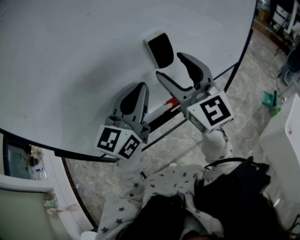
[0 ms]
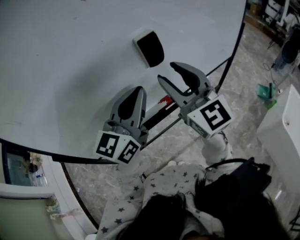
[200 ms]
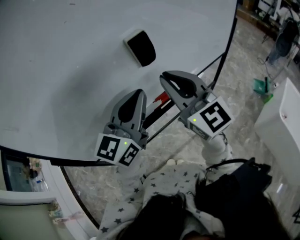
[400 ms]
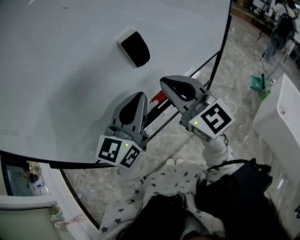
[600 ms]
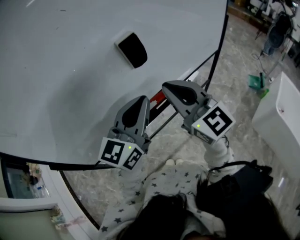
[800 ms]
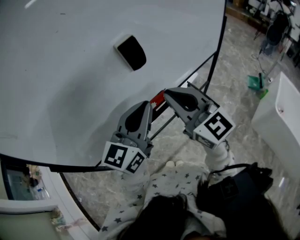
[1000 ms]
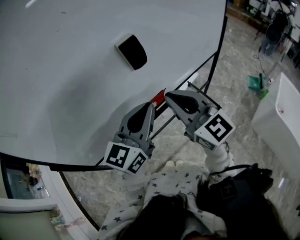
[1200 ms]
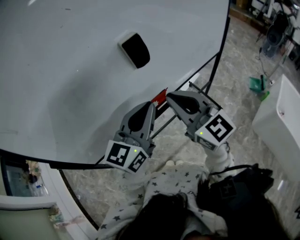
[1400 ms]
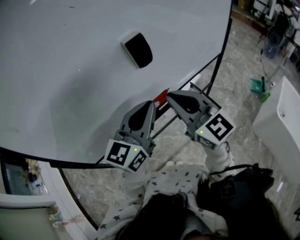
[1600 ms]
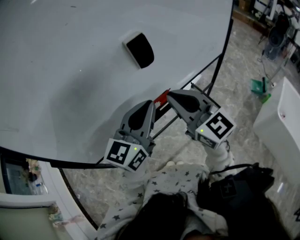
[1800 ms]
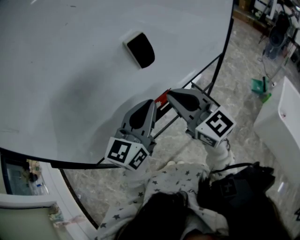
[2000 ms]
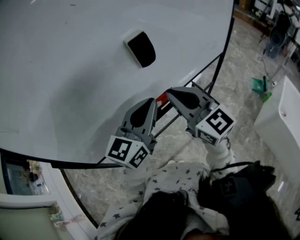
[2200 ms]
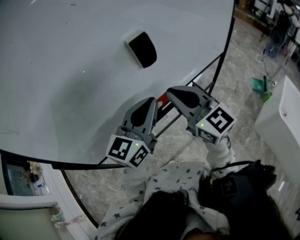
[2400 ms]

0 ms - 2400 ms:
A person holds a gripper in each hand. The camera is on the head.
0 ms - 1200 ms: The left gripper goes approximately 10 cm to the right and downward; the right gripper heads downward and backward, covering about 10 cm, and closes its fingers.
1200 ms - 2400 ms: There are only small adjustments of the grippers.

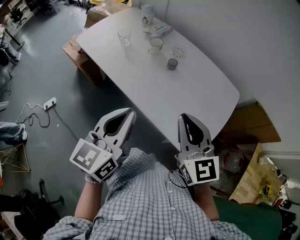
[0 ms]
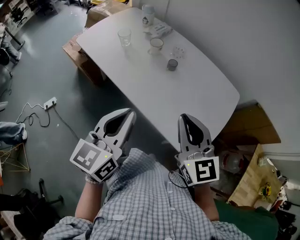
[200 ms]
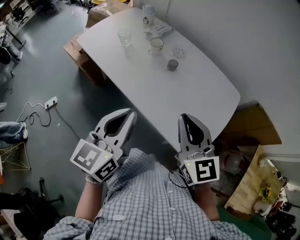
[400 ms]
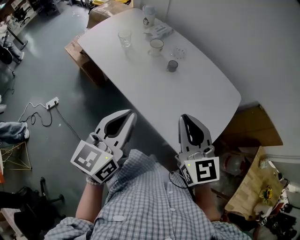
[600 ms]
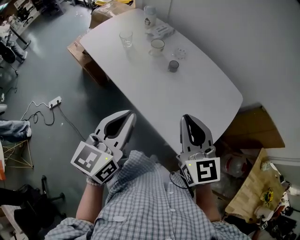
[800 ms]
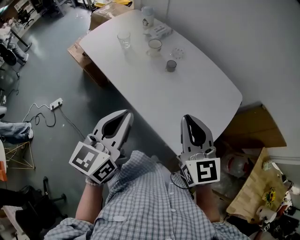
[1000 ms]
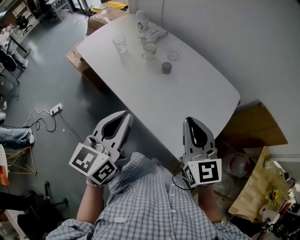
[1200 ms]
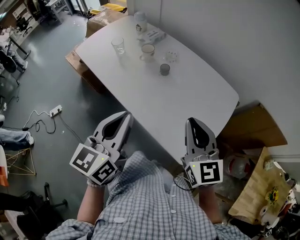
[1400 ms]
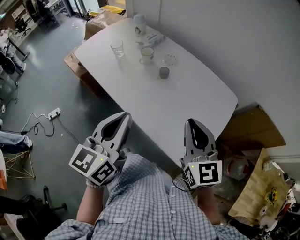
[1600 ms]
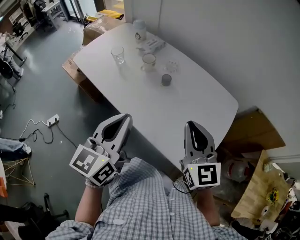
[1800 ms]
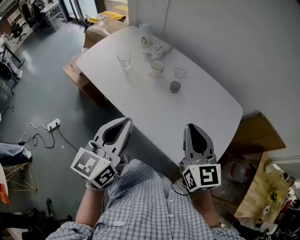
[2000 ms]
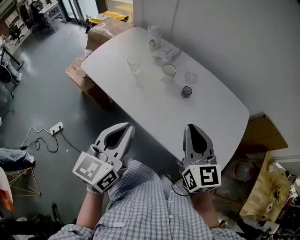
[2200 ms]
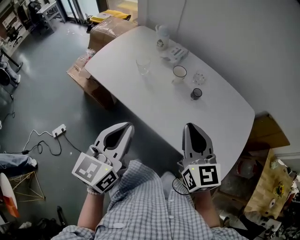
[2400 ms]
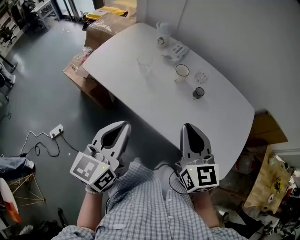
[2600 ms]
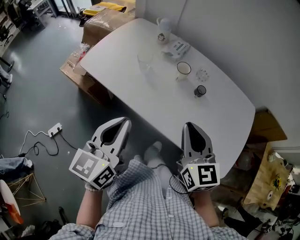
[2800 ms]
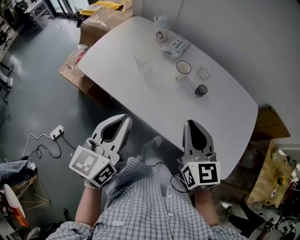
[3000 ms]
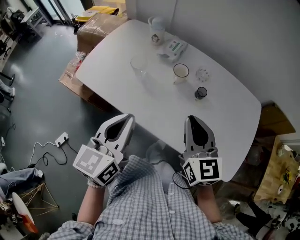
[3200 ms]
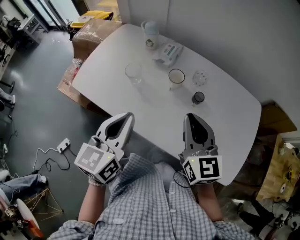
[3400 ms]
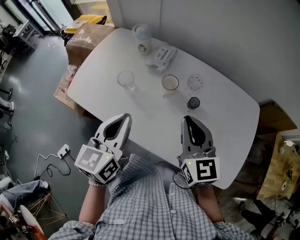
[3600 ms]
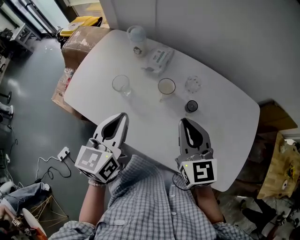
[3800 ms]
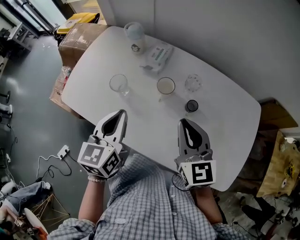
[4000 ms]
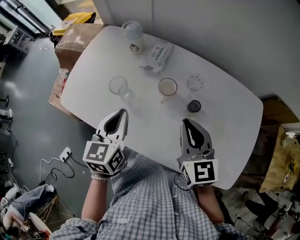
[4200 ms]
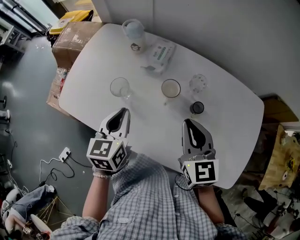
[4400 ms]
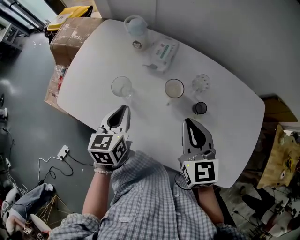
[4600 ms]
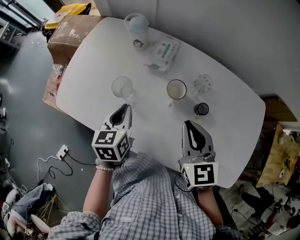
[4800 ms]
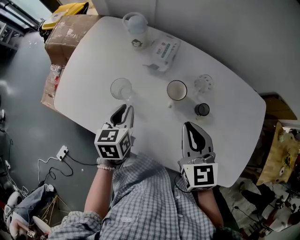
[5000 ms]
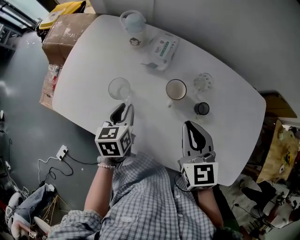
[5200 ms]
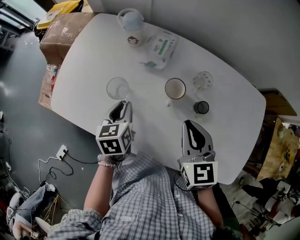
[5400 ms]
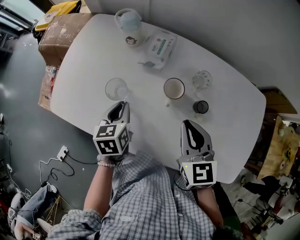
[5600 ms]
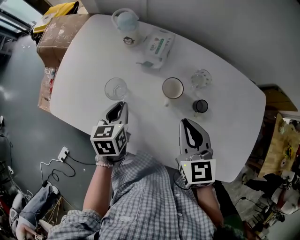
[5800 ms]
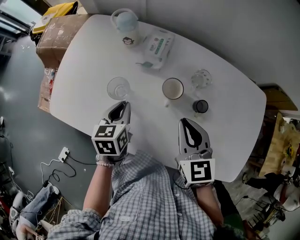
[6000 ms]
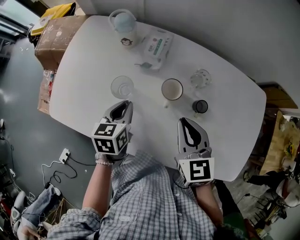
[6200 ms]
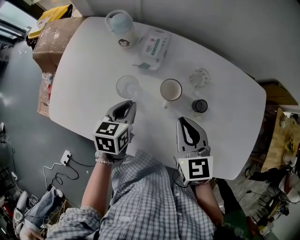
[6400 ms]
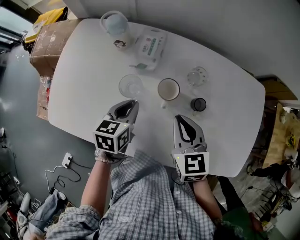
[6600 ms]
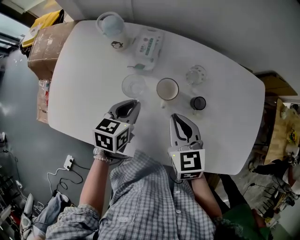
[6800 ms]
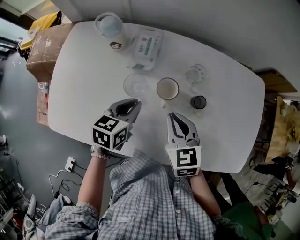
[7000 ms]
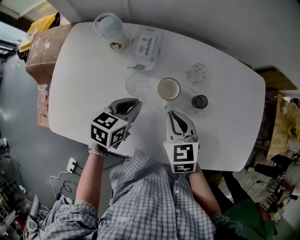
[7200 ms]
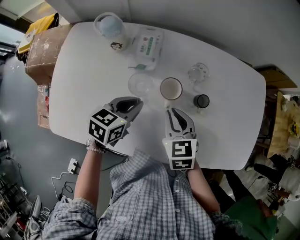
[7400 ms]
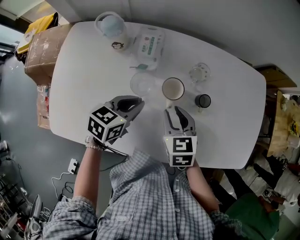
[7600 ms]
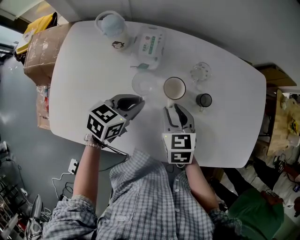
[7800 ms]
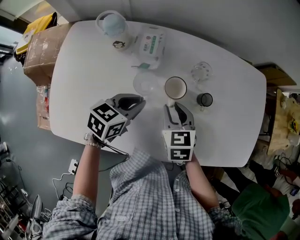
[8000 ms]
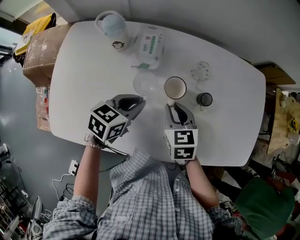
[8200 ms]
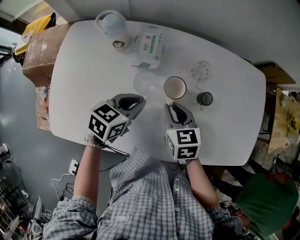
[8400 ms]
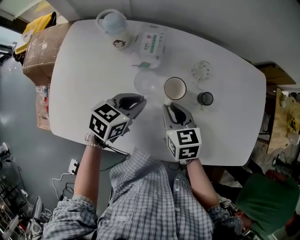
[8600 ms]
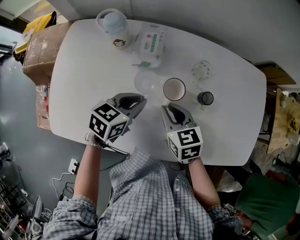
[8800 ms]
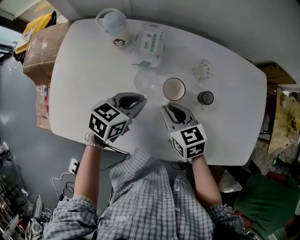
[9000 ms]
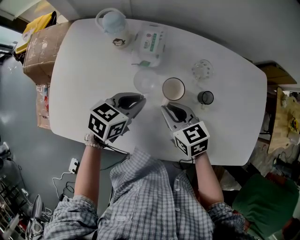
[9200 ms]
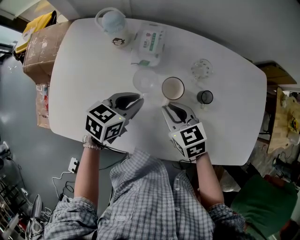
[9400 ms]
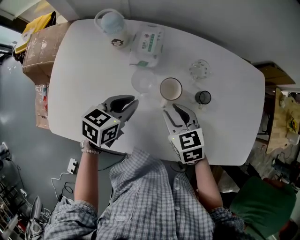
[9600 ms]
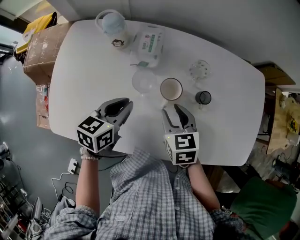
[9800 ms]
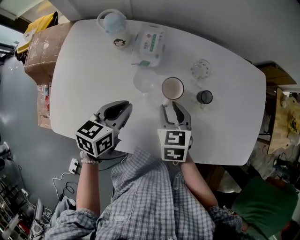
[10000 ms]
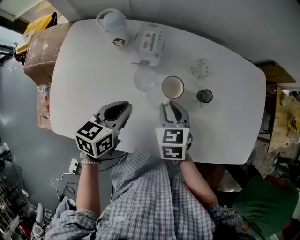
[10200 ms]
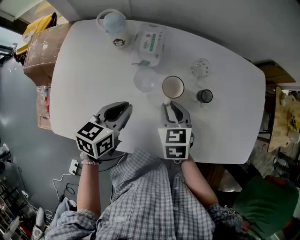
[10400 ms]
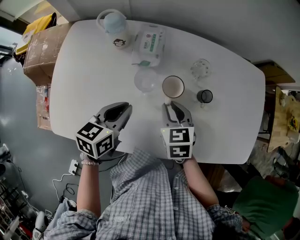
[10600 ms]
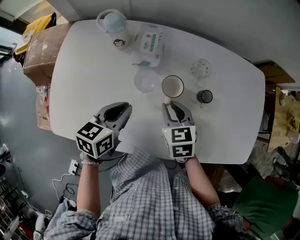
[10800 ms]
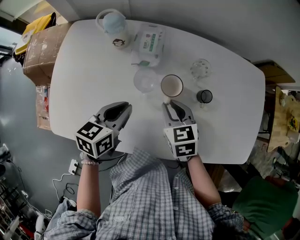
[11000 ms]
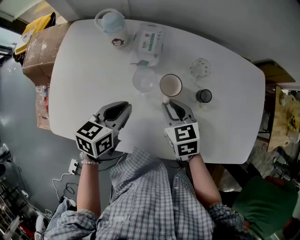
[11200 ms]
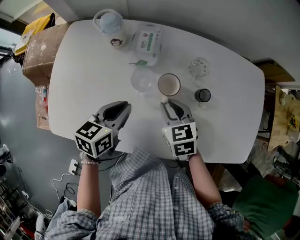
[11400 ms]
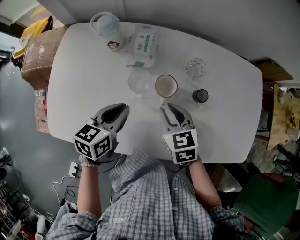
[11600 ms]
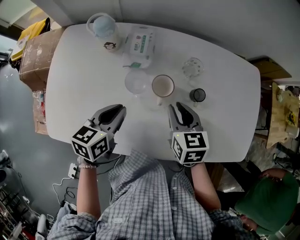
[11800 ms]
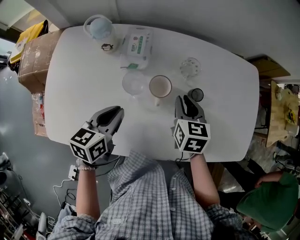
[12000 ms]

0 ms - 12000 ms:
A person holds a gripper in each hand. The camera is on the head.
0 ms - 1600 ms: The right gripper shifts approximately 10 cm to the right.
1600 ms - 3000 ms: The right gripper moves to the left, roughly 25 cm; the left gripper travels to the left and forward by approximately 30 cm.
3000 ms - 4400 ms: The left gripper shifts about 25 cm forward and downward; the right gripper goes approximately 15 cm forward.
4400 ms - 6000 ms: The left gripper heads downward and forward, covering some 10 cm; the right gripper changes place by roughly 5 cm.
6000 ms - 7600 ms: The right gripper goes some 10 cm downward. Meanwhile the left gripper ends up roughly 5 cm from where it was, and swivels about 40 degrees.
7600 ms - 9000 ms: The grippers stay close to where they were, moving slightly.
9000 ms - 10400 ms: The left gripper ends up some 5 cm from where it was.
10400 ms - 12000 ms: The right gripper is displaced to the right by some 10 cm.

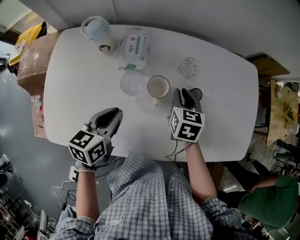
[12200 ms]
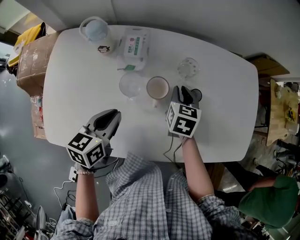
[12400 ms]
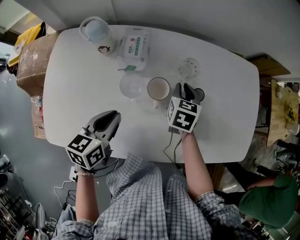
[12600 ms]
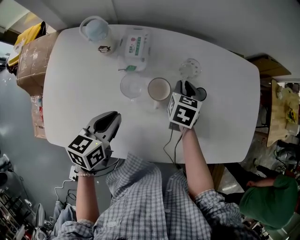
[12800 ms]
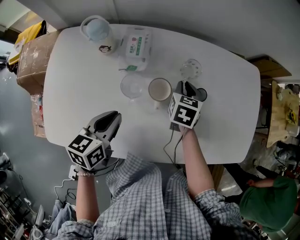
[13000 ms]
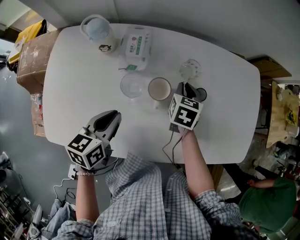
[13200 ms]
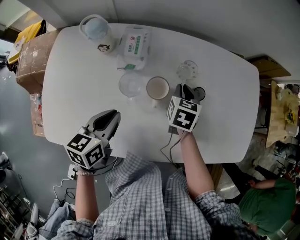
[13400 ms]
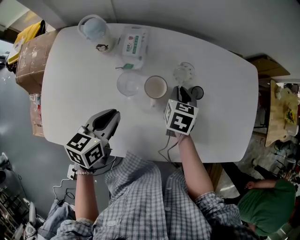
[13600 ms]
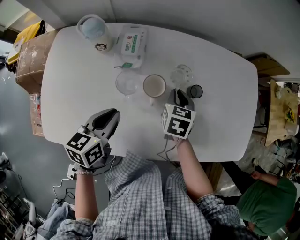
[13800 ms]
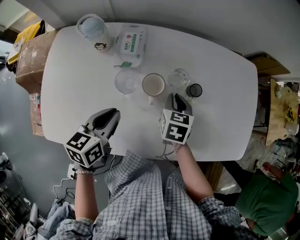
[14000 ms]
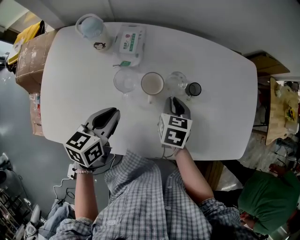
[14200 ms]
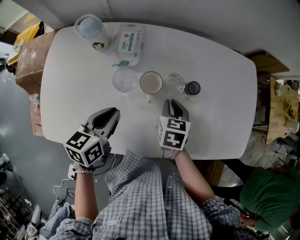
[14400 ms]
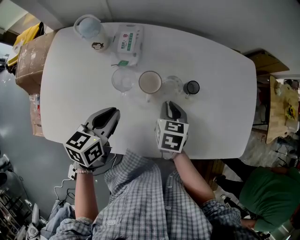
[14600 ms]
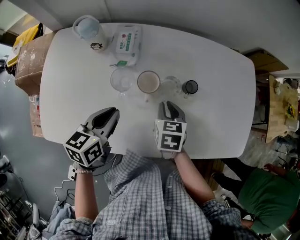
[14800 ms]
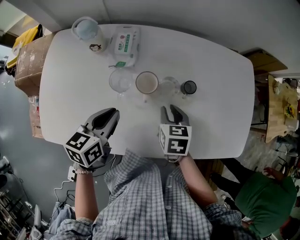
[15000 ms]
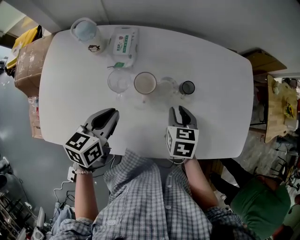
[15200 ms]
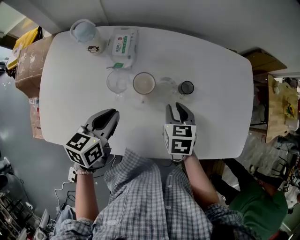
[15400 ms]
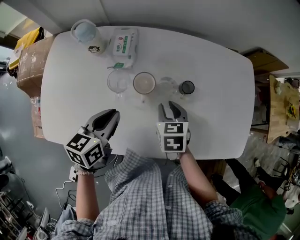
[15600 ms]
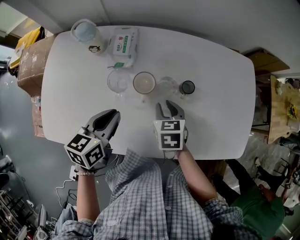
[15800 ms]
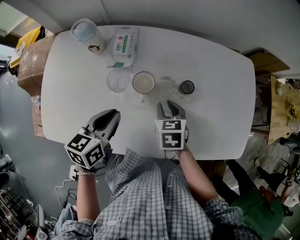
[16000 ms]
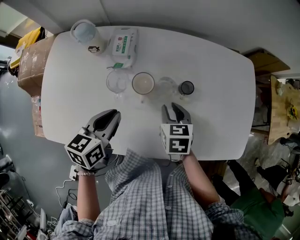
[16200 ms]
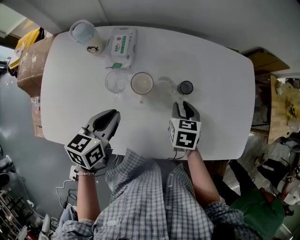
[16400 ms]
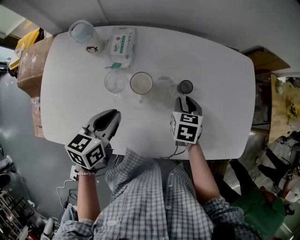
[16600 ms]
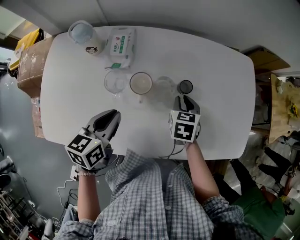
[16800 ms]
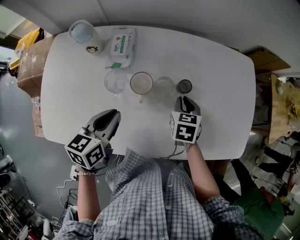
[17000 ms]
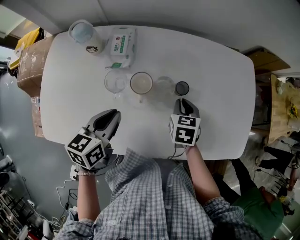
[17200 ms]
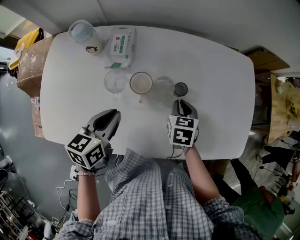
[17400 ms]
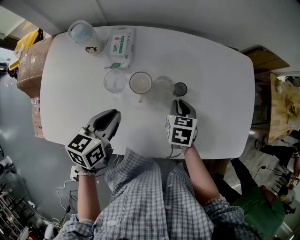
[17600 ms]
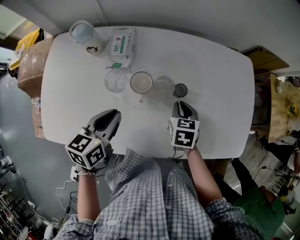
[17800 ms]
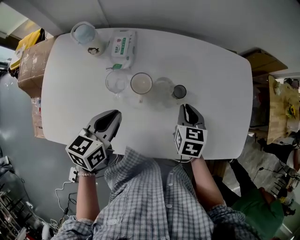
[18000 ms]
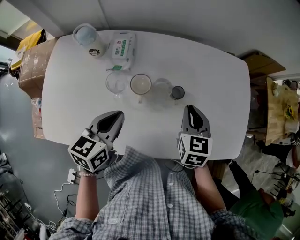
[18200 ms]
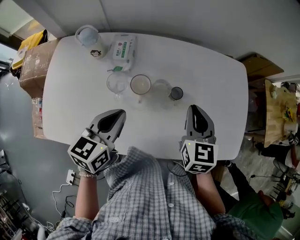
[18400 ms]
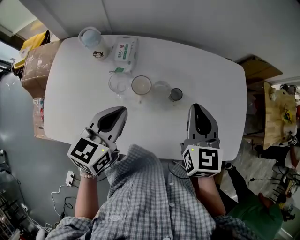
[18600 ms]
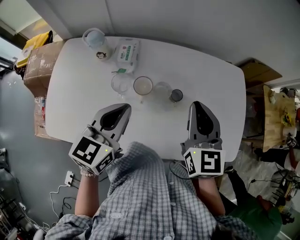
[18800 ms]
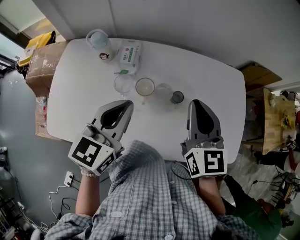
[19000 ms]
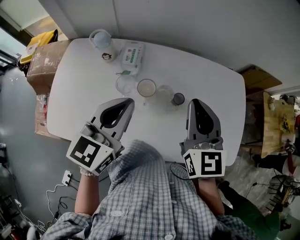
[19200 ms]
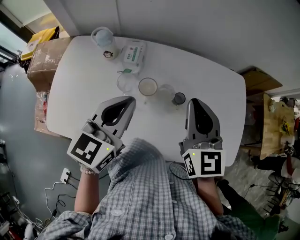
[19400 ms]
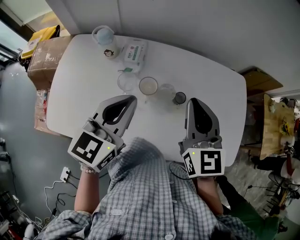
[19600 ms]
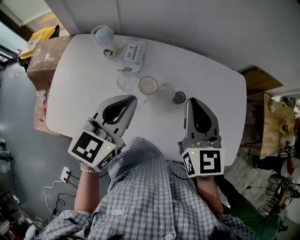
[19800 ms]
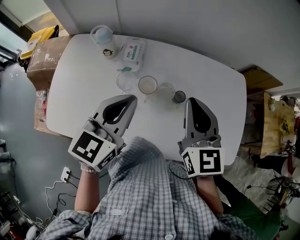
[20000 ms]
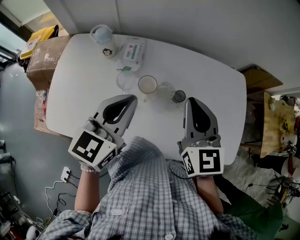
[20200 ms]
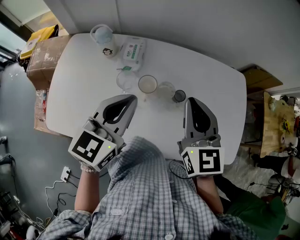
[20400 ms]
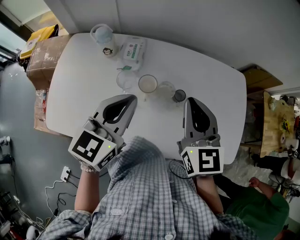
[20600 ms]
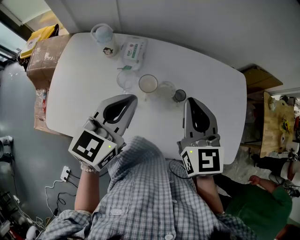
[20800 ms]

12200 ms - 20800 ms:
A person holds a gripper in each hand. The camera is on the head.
12200 ms - 13600 ms: The grippers stay close to where they were, moving slightly.
13600 ms - 15000 ms: The right gripper moves backward, roughly 10 cm.
15000 ms - 16600 ms: The right gripper travels to the right and forward by about 10 cm.
16600 ms - 18000 ms: The grippers stay close to where they were, moving slightly.
18000 ms - 19400 ms: The right gripper shifts roughly 25 cm upward, and tips its fingers upward by about 30 degrees. Meanwhile the left gripper is displaced upward by some 15 cm, and swivels some 30 degrees.
19400 ms - 20800 ms: The grippers stay close to where they were, moving slightly.

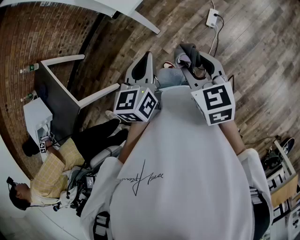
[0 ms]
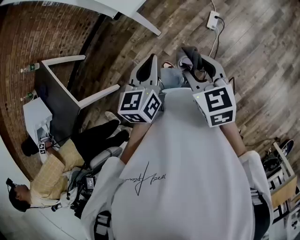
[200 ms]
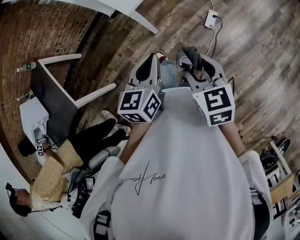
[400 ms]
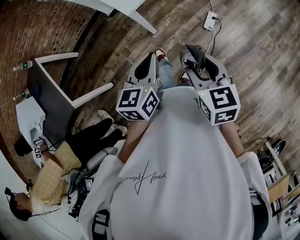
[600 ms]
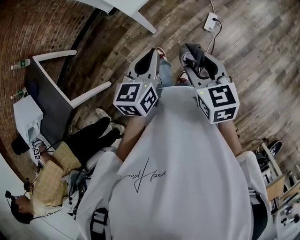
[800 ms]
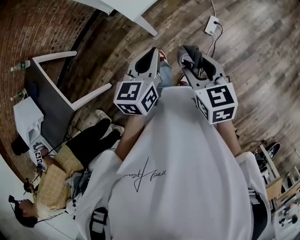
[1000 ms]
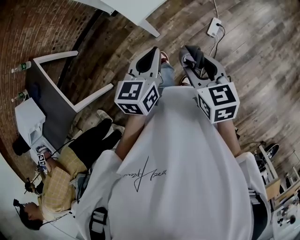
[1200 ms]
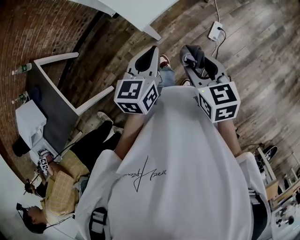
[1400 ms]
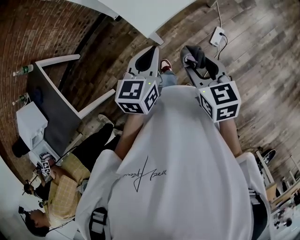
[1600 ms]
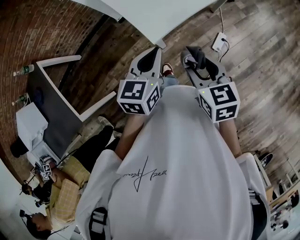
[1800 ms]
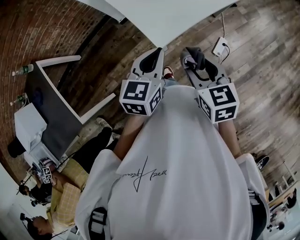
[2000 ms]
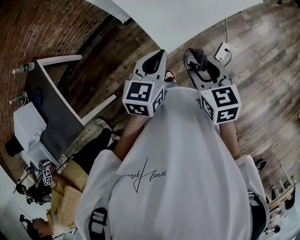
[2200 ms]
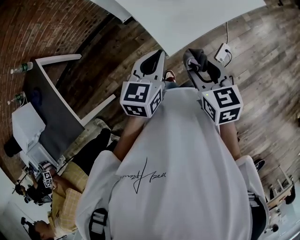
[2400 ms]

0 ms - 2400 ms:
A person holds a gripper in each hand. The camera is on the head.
0 ms - 1200 ms: The two grippers go approximately 10 cm forward.
1200 ms - 2400 ms: The two grippers go approximately 20 cm forward and to the left.
